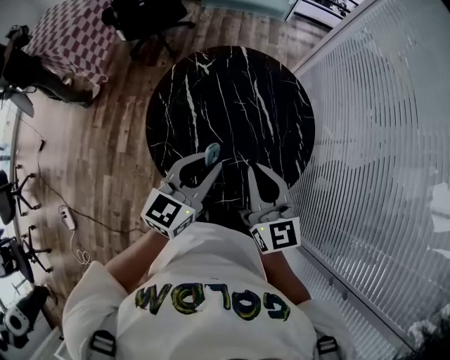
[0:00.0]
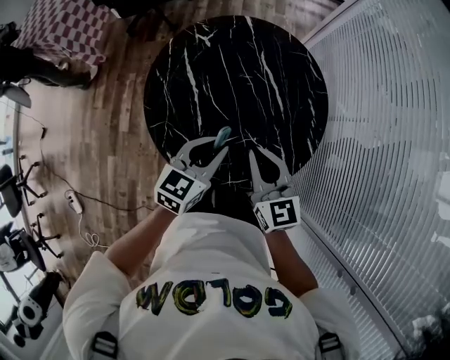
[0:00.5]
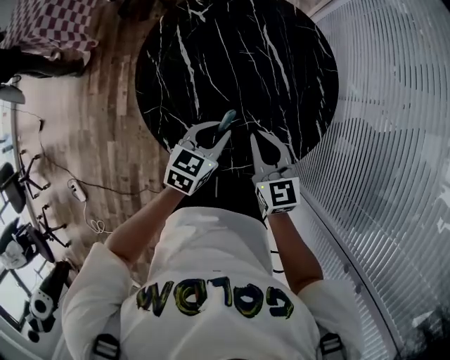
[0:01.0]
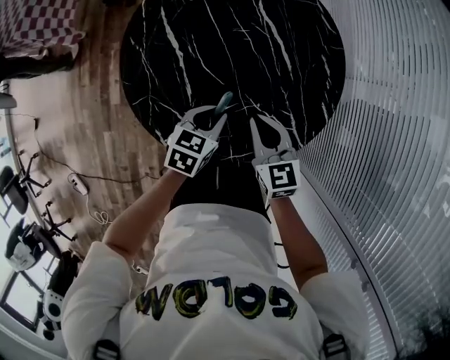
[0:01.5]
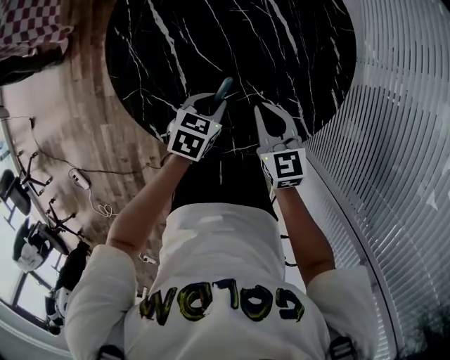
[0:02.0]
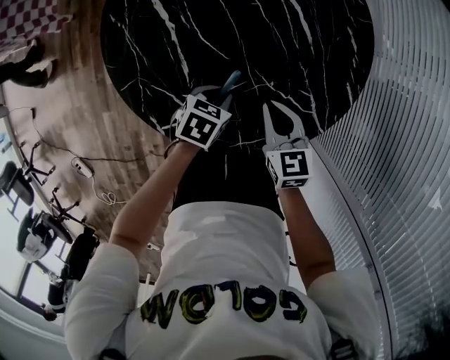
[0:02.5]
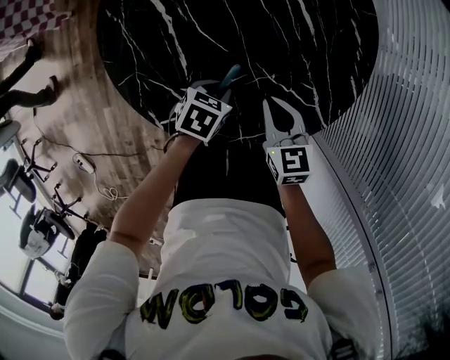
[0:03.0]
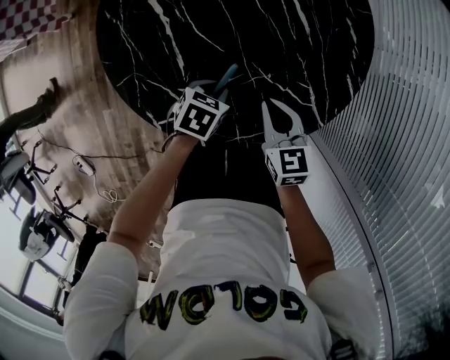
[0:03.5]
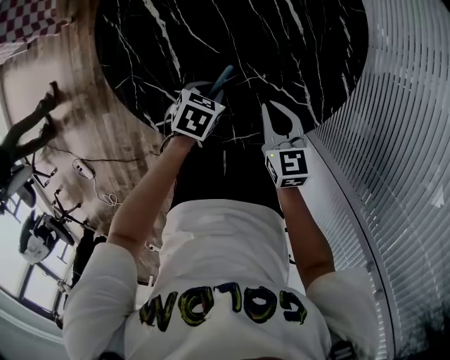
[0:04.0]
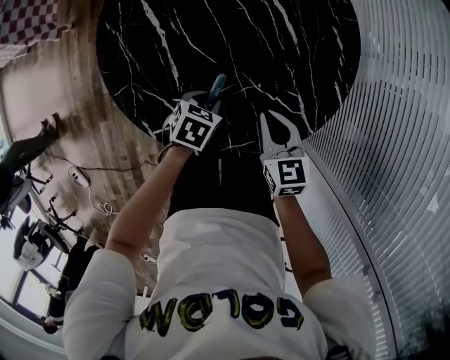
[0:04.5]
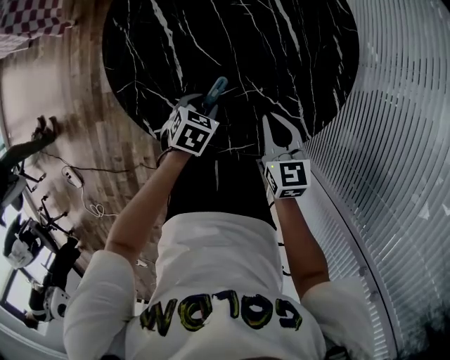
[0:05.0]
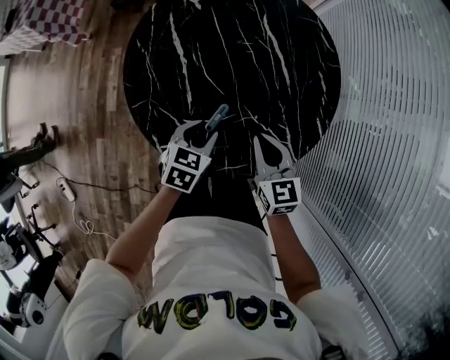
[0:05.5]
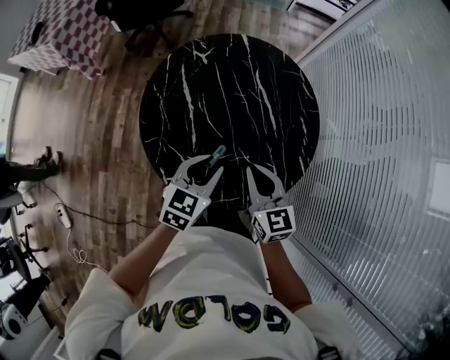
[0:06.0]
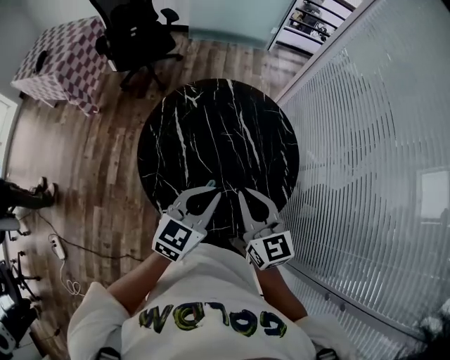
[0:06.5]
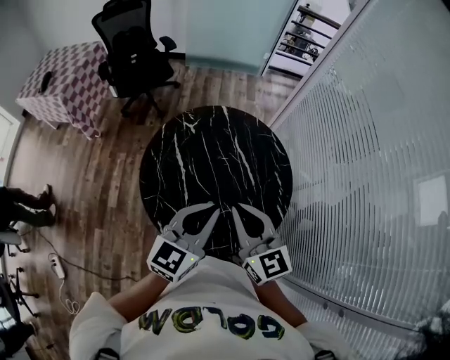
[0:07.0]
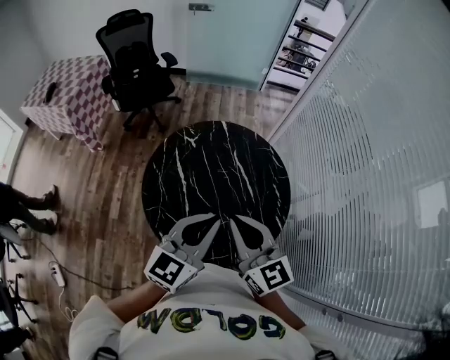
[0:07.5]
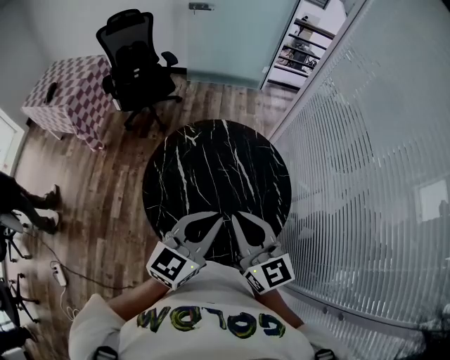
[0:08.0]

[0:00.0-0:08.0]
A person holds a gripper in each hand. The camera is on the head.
0:00.0 to 0:02.0: Both grippers move downward, roughly 30 cm. The left gripper tips its fingers downward by about 40 degrees. The right gripper changes its angle by roughly 20 degrees.
0:02.0 to 0:04.0: The left gripper is displaced downward by approximately 5 cm. Meanwhile the right gripper moves some 5 cm.
0:04.0 to 0:06.0: The two grippers go some 25 cm upward. The left gripper tips its fingers upward by about 30 degrees.
0:06.0 to 0:08.0: Both grippers move upward, about 25 cm. The left gripper changes its angle by some 30 degrees, and closes.

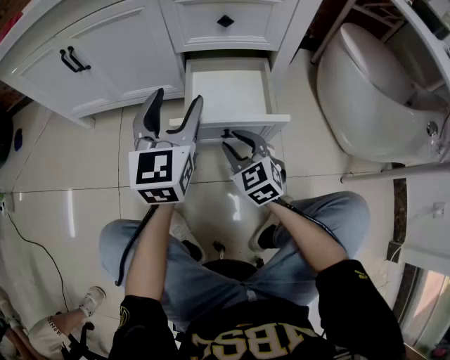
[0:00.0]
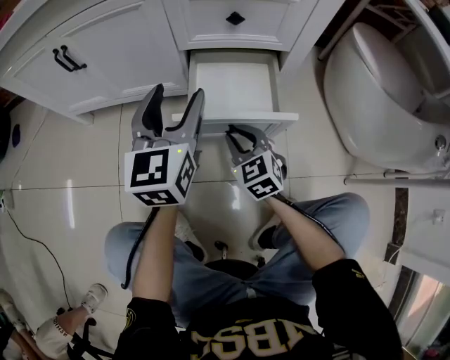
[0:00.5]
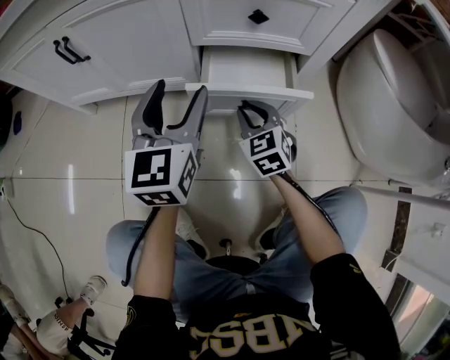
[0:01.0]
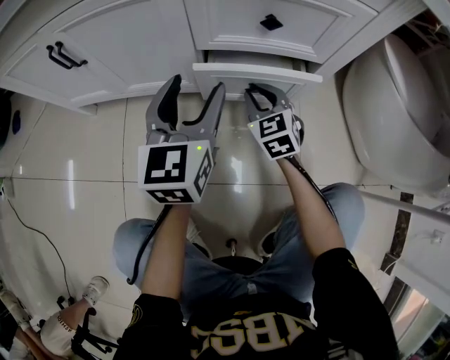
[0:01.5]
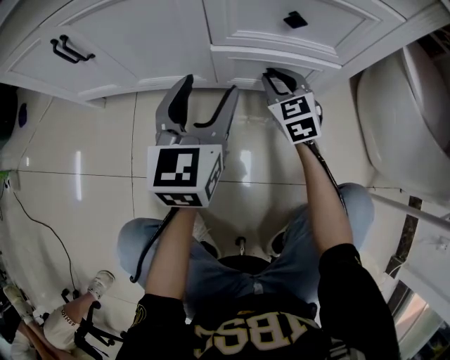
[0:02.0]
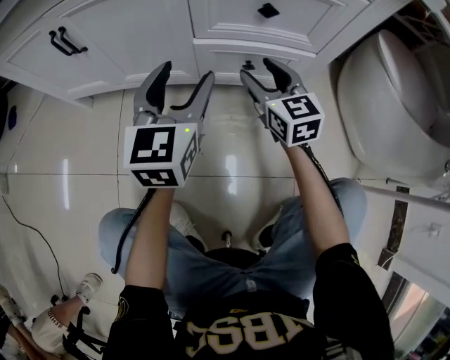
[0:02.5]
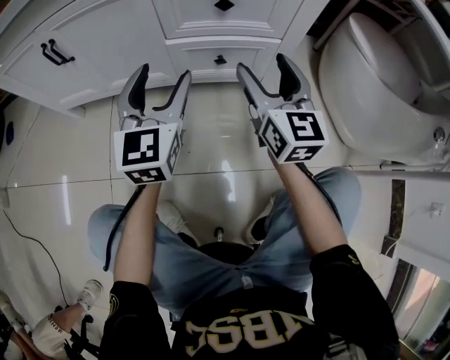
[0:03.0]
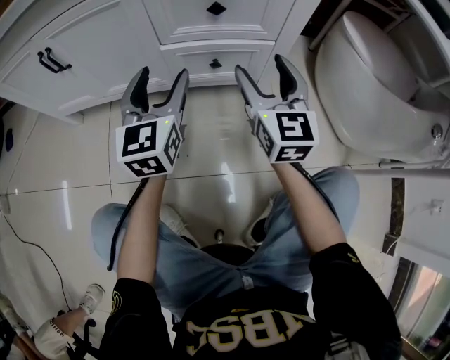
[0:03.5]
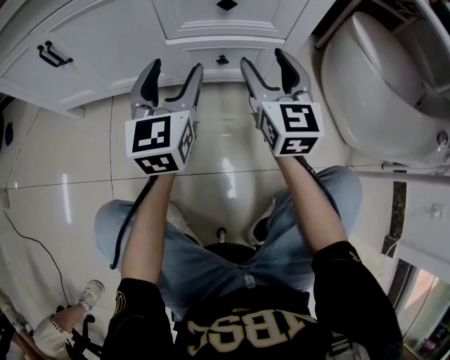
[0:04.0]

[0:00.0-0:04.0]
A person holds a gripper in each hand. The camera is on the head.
0:00.0 to 0:02.0: The right gripper heads forward, covering roughly 25 cm; the left gripper goes roughly 10 cm forward.
0:02.0 to 0:04.0: The right gripper travels upward, backward and to the right by roughly 20 cm, changes its angle by about 30 degrees, and opens.

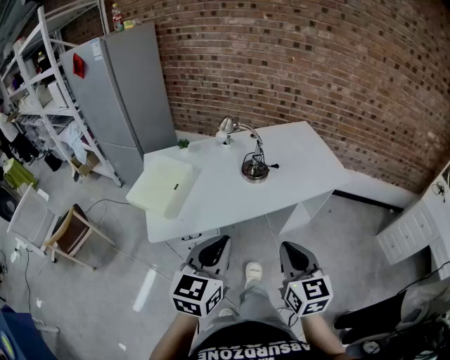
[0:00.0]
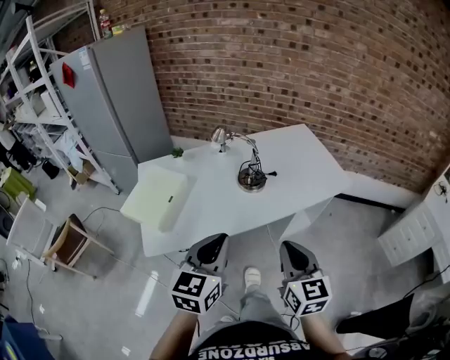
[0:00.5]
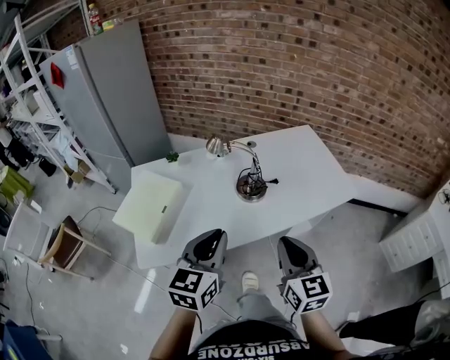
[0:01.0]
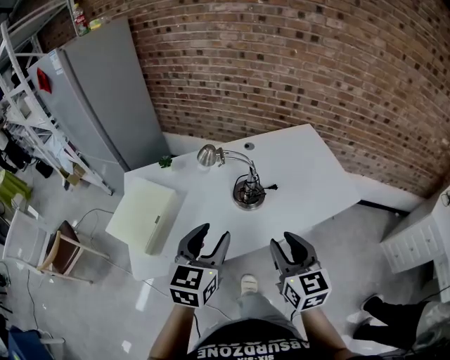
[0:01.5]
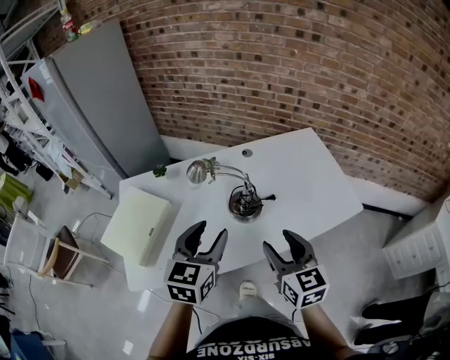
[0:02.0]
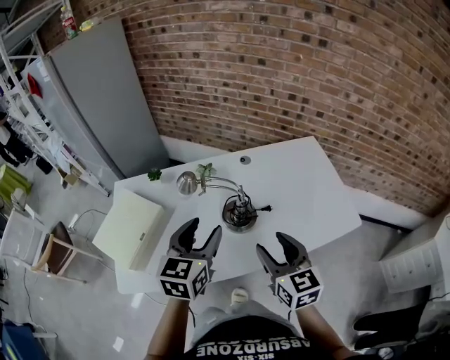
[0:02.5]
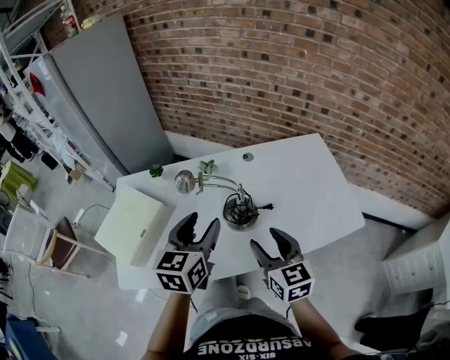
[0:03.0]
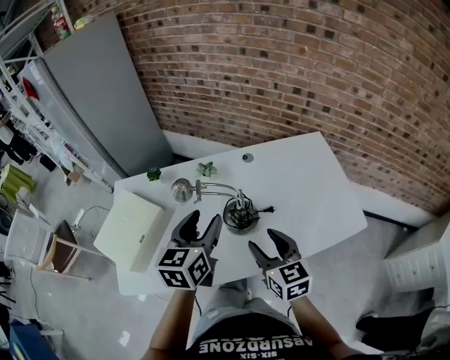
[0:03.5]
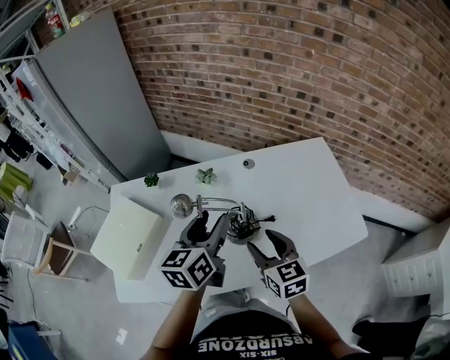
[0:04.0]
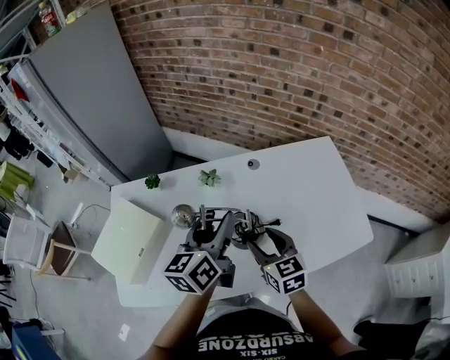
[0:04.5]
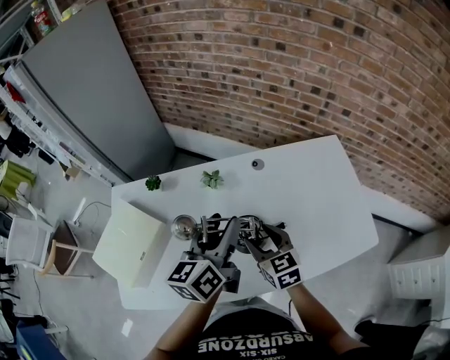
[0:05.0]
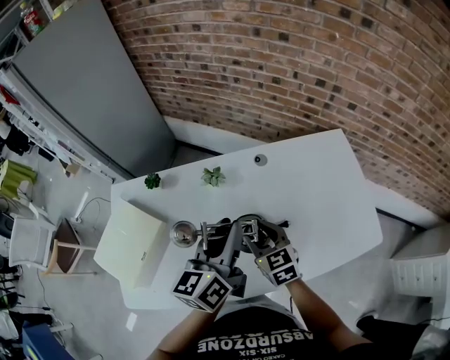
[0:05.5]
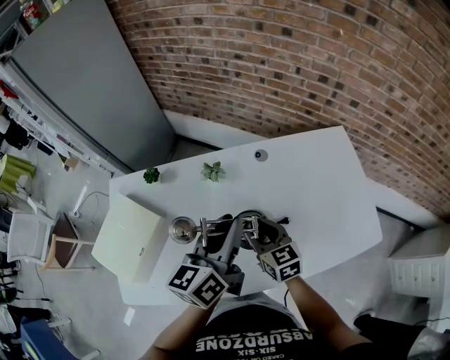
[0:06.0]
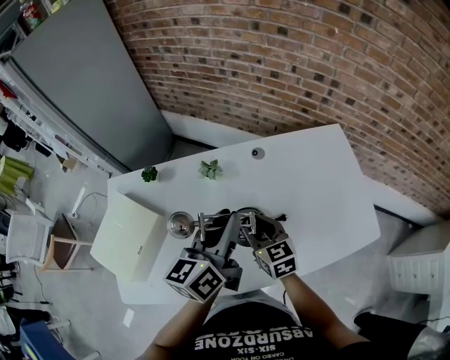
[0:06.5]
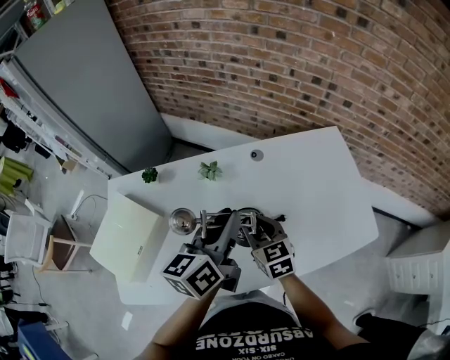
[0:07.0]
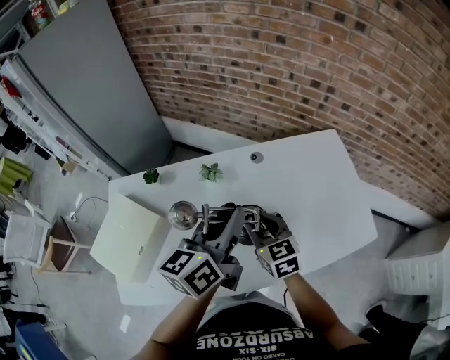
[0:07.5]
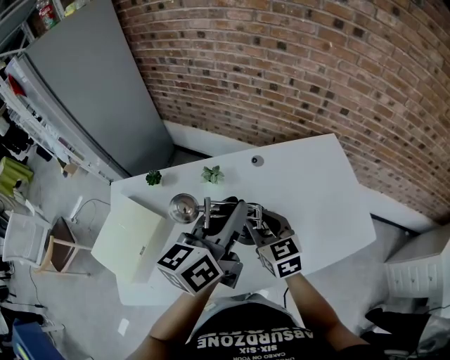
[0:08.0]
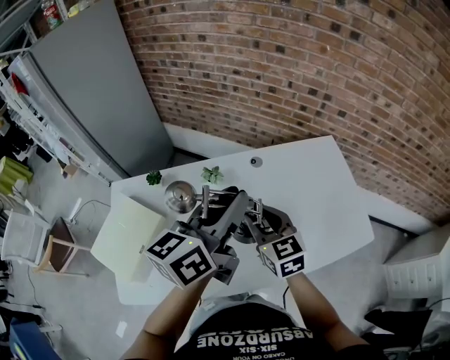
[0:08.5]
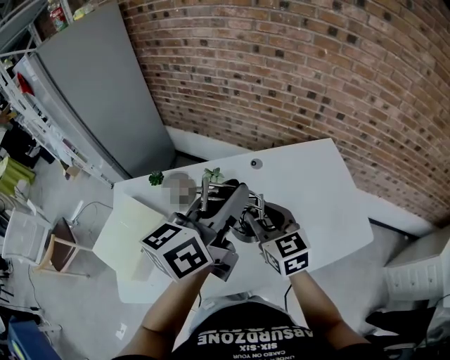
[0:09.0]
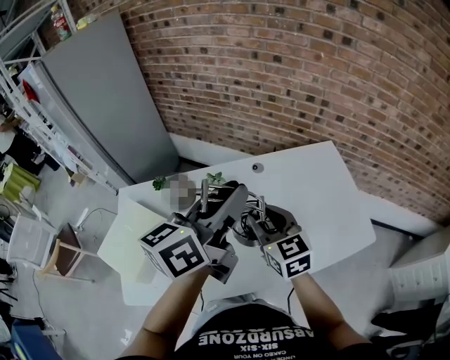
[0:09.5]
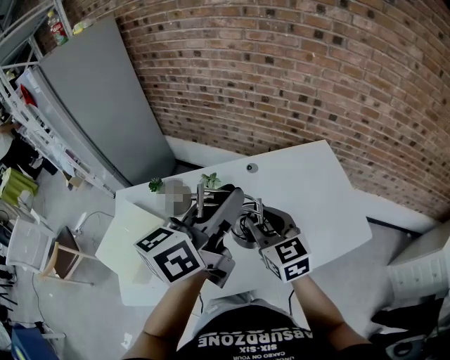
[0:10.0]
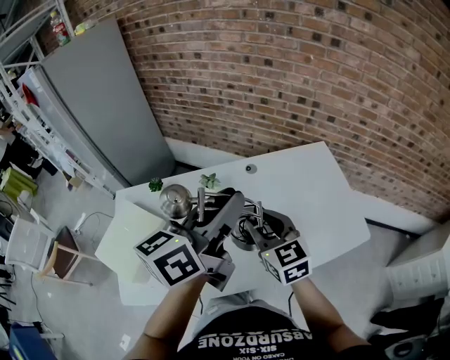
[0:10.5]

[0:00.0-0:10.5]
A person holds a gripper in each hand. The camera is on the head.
0:00.0 to 0:02.0: Both grippers travel together forward, about 30 cm. The left gripper opens; the right gripper opens up.
0:02.0 to 0:04.0: The right gripper heads forward and downward, covering approximately 15 cm. Meanwhile the left gripper shifts approximately 15 cm forward, and changes its angle by about 30 degrees.
0:04.0 to 0:06.5: The left gripper moves forward, some 5 cm, and closes up. Meanwhile the right gripper moves forward and downward, some 15 cm.
0:06.5 to 0:08.5: The grippers both shift upward by about 10 cm.
0:08.5 to 0:10.5: The right gripper goes about 5 cm upward; the left gripper is displaced upward and backward by about 5 cm.

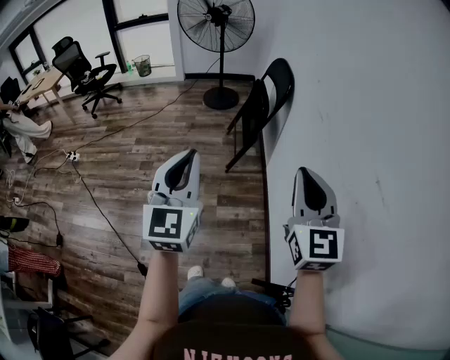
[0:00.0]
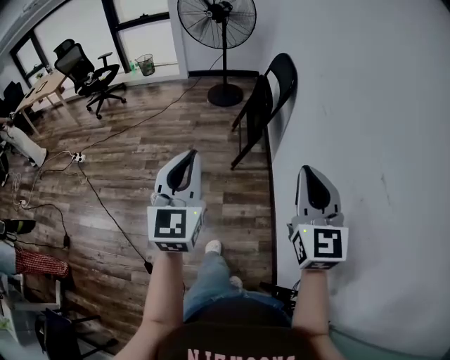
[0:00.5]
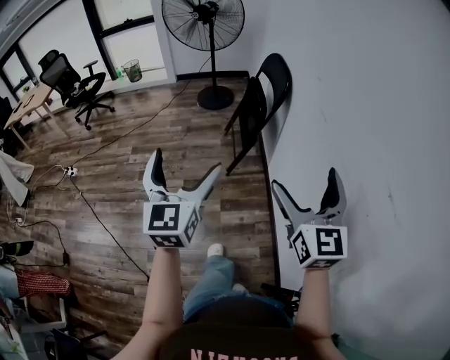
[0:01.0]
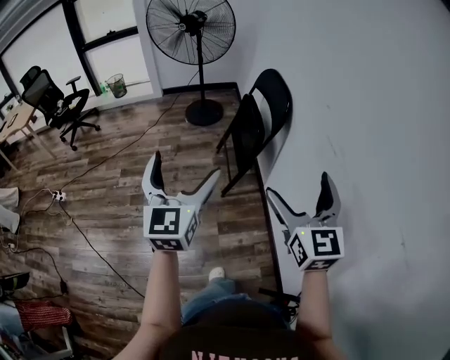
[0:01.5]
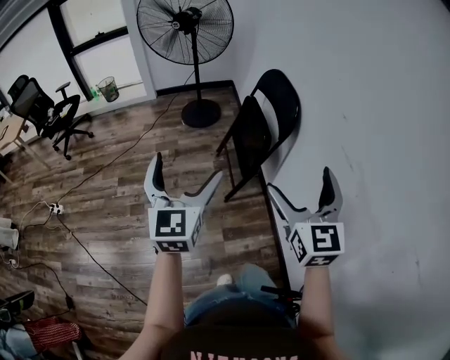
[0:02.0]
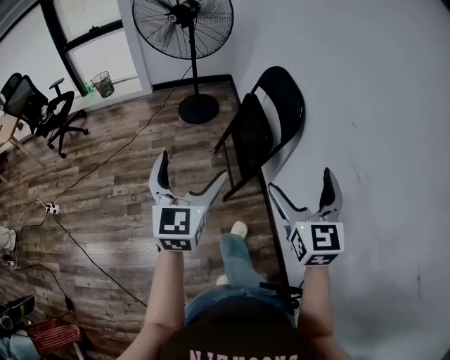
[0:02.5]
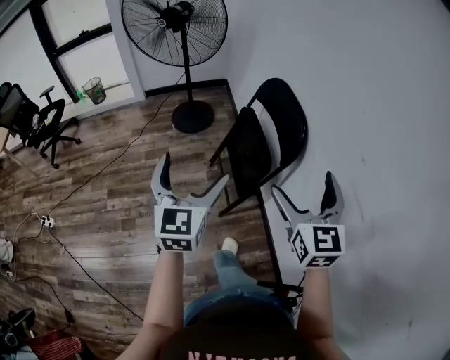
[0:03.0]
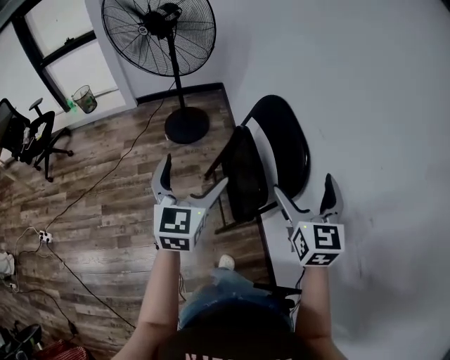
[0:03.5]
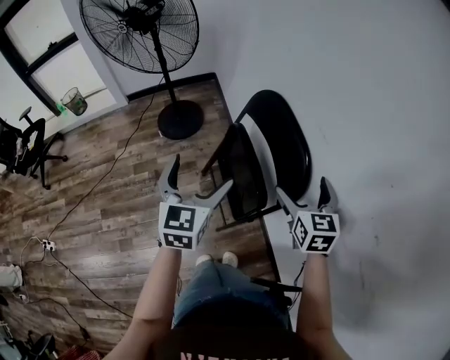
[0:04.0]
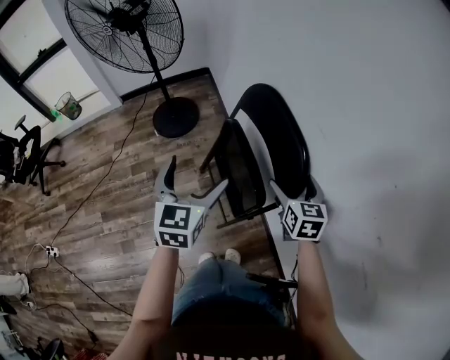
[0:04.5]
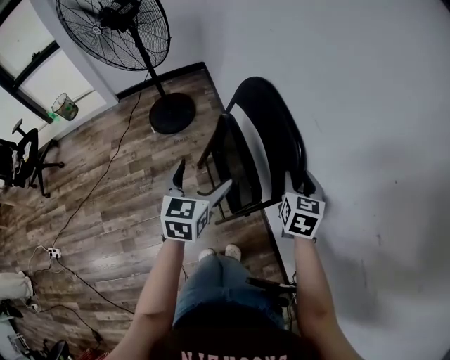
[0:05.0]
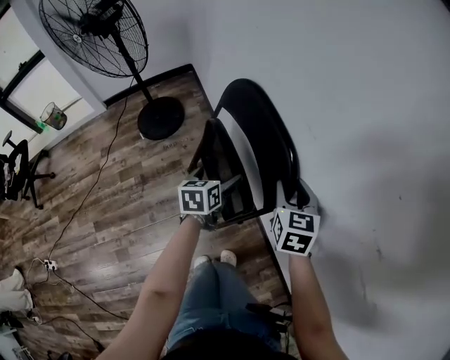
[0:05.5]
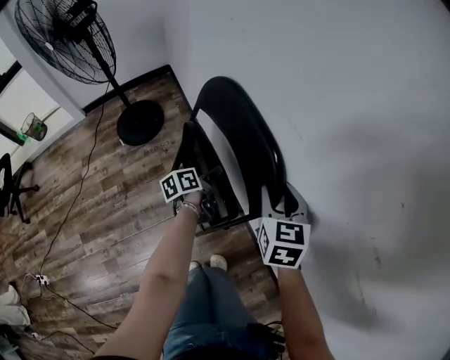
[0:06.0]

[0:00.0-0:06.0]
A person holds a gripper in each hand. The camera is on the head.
0:00.0 to 0:02.0: The grippers both shift forward by some 30 cm. The right gripper opens up, while the left gripper opens its fingers.
0:02.0 to 0:04.0: The two grippers travel together, forward, about 40 cm. The left gripper swivels some 20 degrees. The right gripper swivels roughly 20 degrees.
0:04.0 to 0:06.0: The right gripper shifts some 5 cm downward, and closes its fingers. Meanwhile the left gripper goes roughly 35 cm downward, forward and to the right, rolls counterclockwise, seen from behind, by roughly 60 degrees, and closes.
